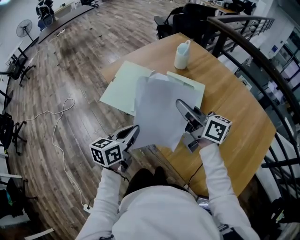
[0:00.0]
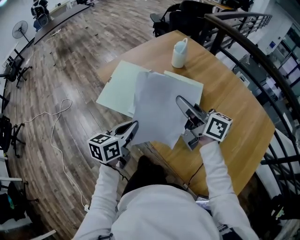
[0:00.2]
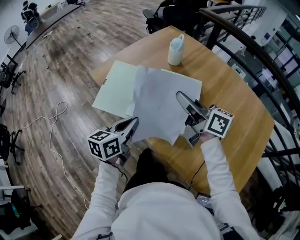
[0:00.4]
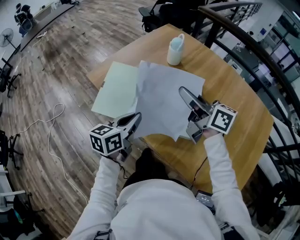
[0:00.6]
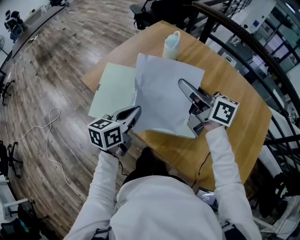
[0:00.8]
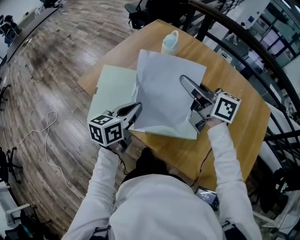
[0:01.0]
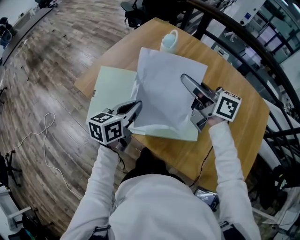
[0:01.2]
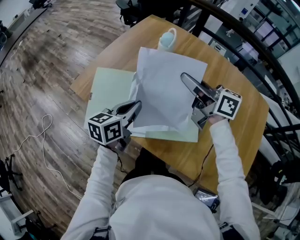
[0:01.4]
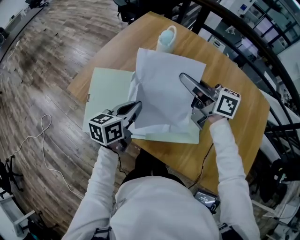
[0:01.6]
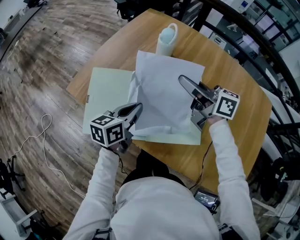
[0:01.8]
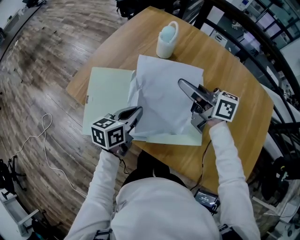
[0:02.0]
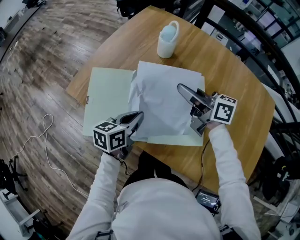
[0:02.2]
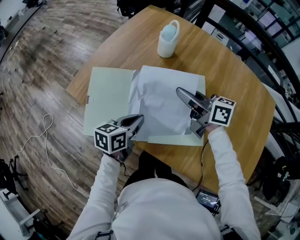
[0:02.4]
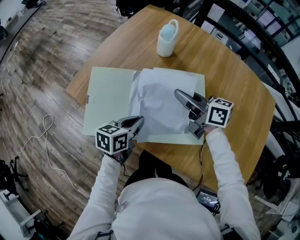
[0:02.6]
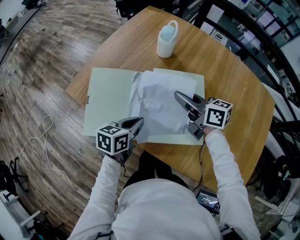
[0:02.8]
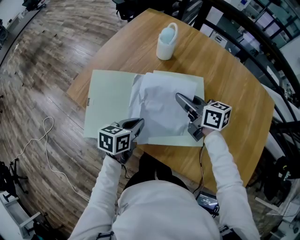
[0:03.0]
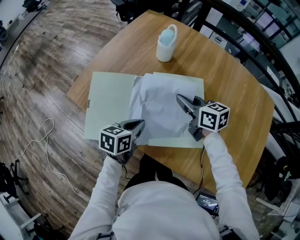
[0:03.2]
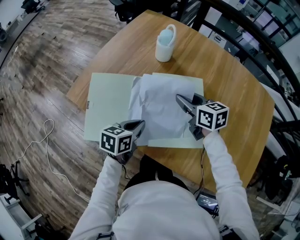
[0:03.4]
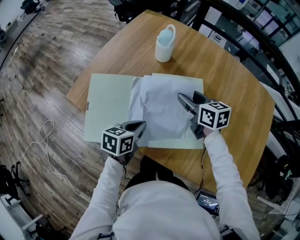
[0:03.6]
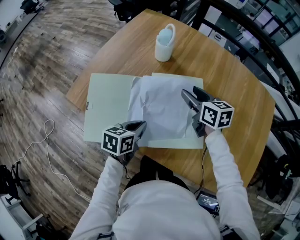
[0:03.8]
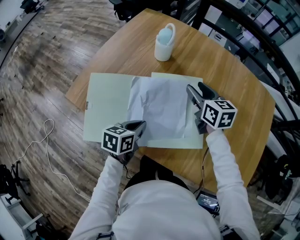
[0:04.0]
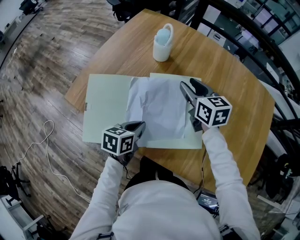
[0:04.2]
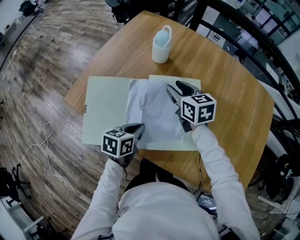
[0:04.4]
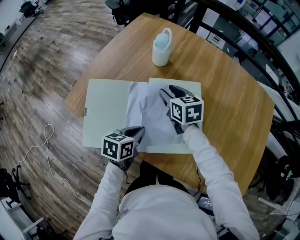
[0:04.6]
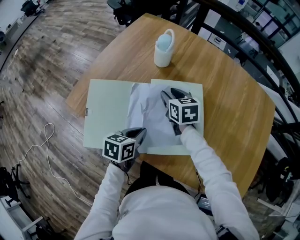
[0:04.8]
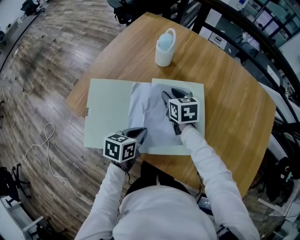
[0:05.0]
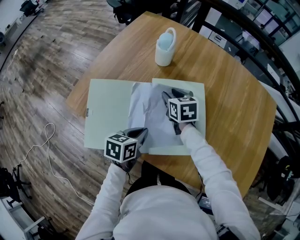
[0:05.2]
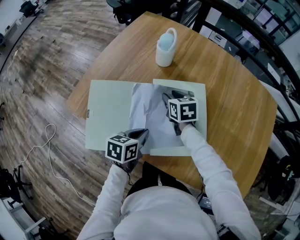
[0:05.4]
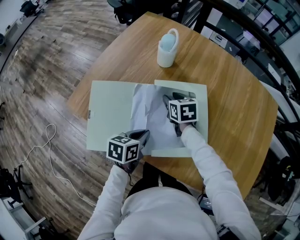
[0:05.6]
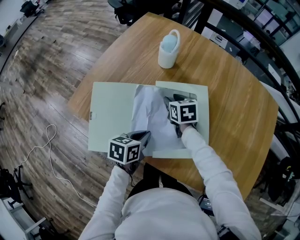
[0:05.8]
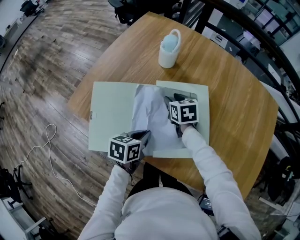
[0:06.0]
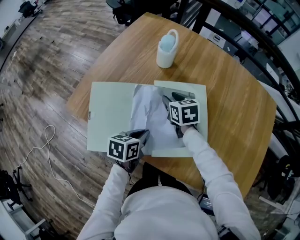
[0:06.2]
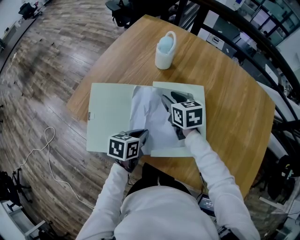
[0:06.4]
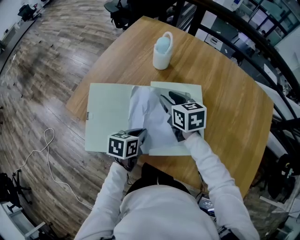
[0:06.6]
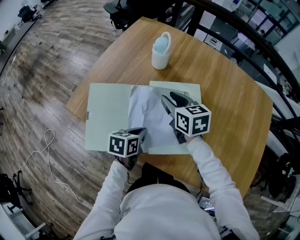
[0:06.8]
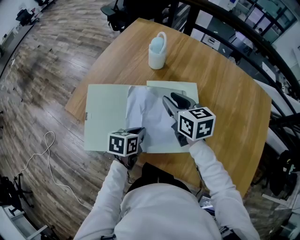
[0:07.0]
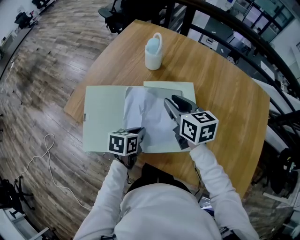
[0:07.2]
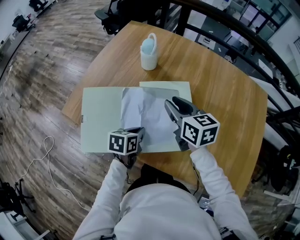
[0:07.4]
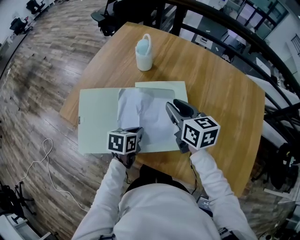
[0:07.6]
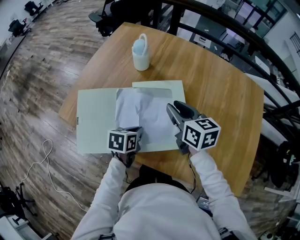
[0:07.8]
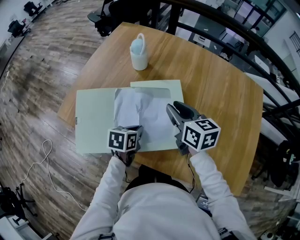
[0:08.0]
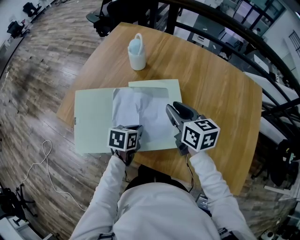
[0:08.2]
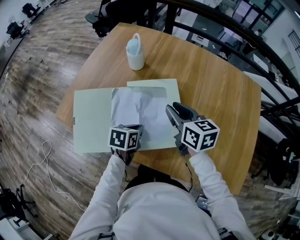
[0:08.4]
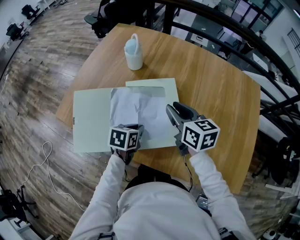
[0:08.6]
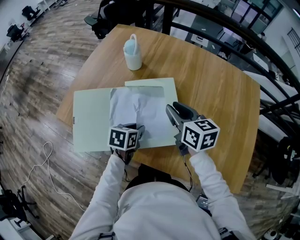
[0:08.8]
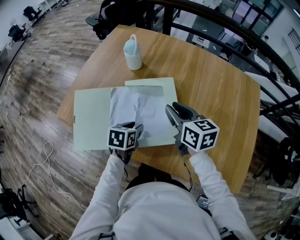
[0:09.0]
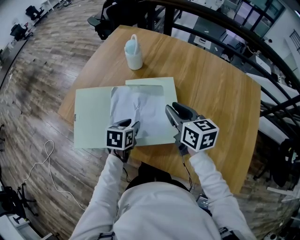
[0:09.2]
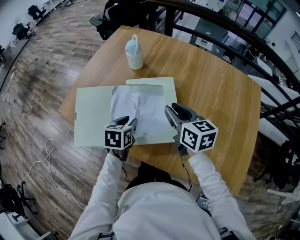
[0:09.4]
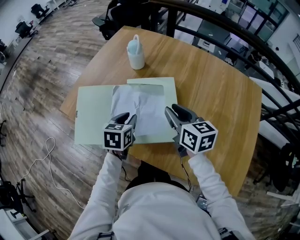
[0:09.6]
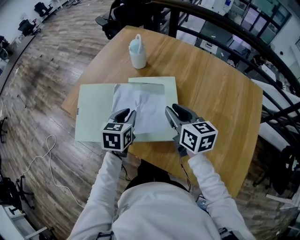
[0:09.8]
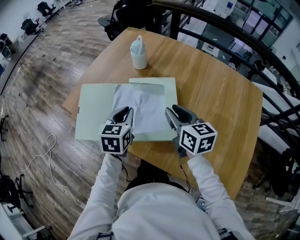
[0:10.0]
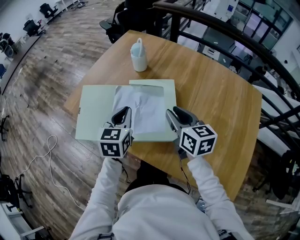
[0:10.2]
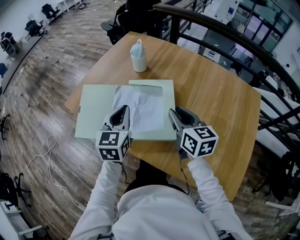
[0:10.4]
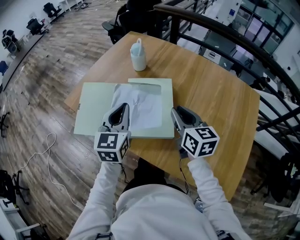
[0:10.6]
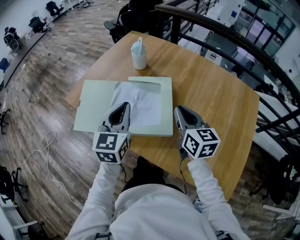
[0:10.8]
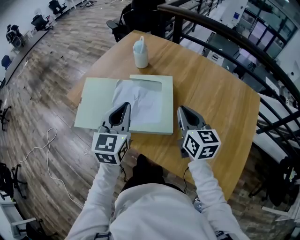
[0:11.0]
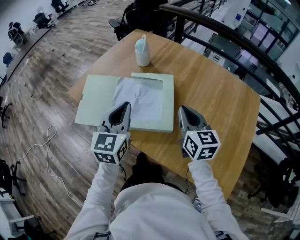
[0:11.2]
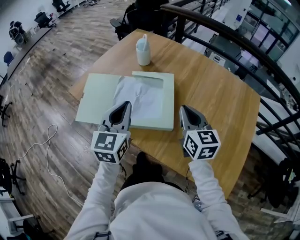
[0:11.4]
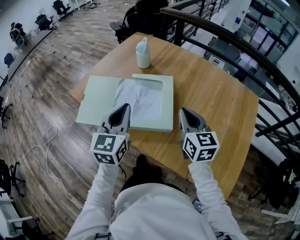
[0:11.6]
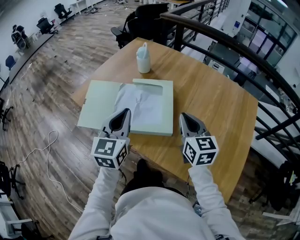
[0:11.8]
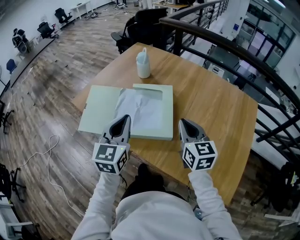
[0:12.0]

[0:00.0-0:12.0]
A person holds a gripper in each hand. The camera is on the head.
0:00.0 to 0:01.6: Both grippers travel together forward, approximately 20 cm. The left gripper rotates some 20 degrees.
0:01.6 to 0:03.0: The two grippers go about 10 cm downward.
0:03.0 to 0:04.4: The right gripper moves forward, approximately 5 cm, rotates some 30 degrees, and opens up.
0:04.4 to 0:06.0: The right gripper travels downward by some 10 cm.
0:06.0 to 0:07.6: The right gripper is displaced upward, to the right and backward by roughly 20 cm, and rotates roughly 20 degrees.
0:07.6 to 0:09.0: The left gripper opens up. The right gripper shifts roughly 5 cm to the right.
0:09.0 to 0:10.4: The right gripper is displaced backward by approximately 5 cm, while the left gripper travels upward by about 15 cm, tips its fingers upward by some 30 degrees, and closes its fingers.
0:10.4 to 0:12.0: Both grippers move backward, some 10 cm. The right gripper closes up.

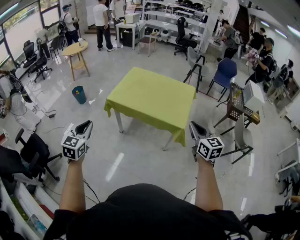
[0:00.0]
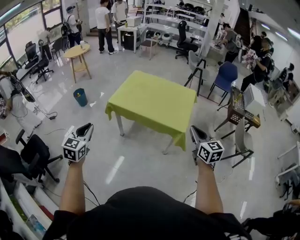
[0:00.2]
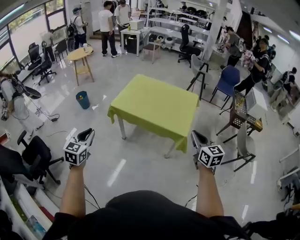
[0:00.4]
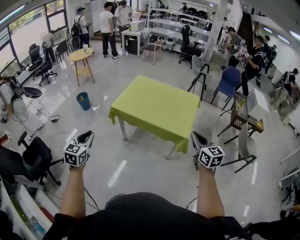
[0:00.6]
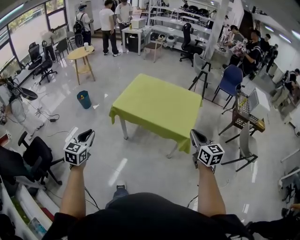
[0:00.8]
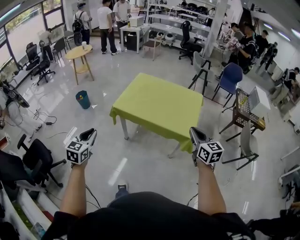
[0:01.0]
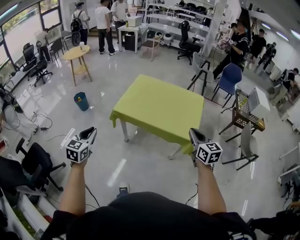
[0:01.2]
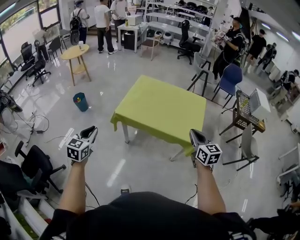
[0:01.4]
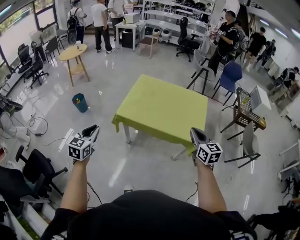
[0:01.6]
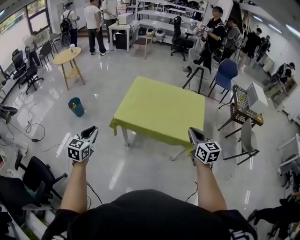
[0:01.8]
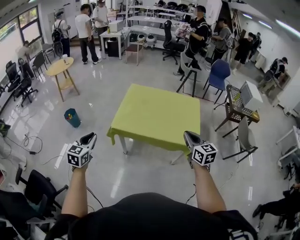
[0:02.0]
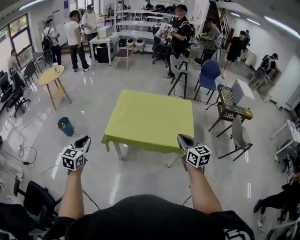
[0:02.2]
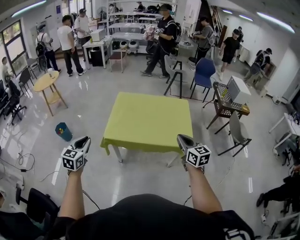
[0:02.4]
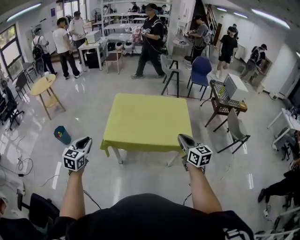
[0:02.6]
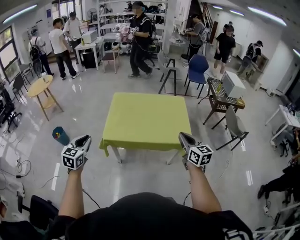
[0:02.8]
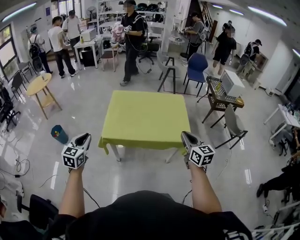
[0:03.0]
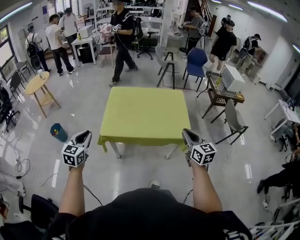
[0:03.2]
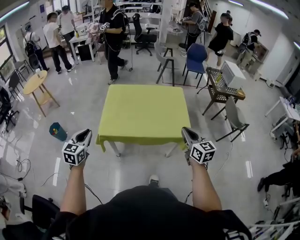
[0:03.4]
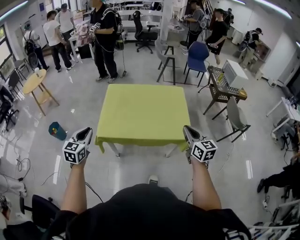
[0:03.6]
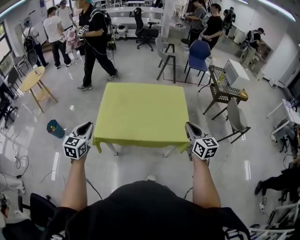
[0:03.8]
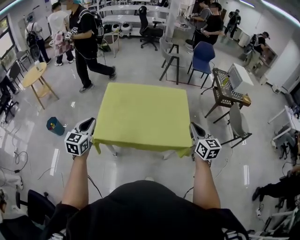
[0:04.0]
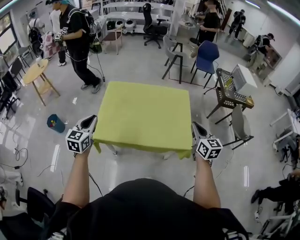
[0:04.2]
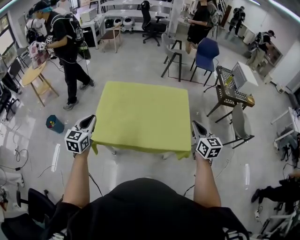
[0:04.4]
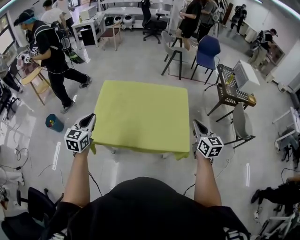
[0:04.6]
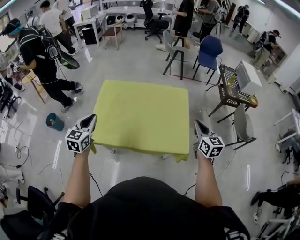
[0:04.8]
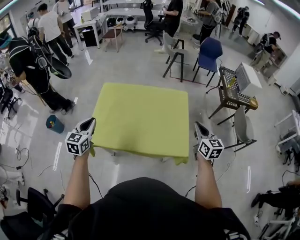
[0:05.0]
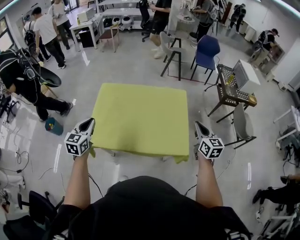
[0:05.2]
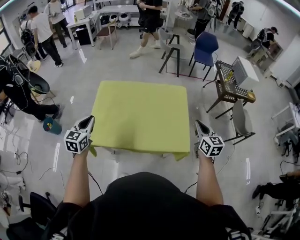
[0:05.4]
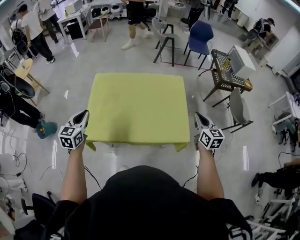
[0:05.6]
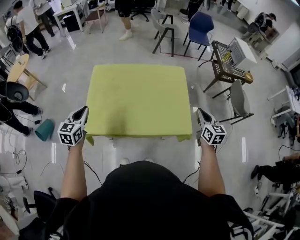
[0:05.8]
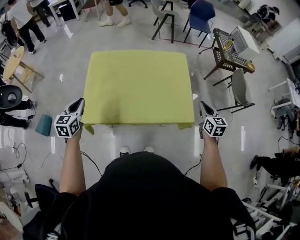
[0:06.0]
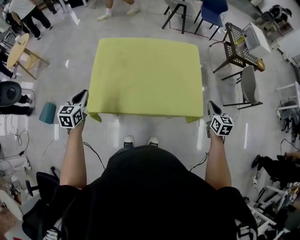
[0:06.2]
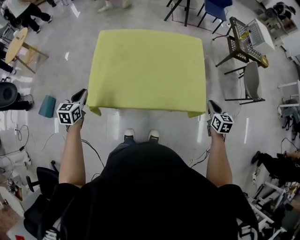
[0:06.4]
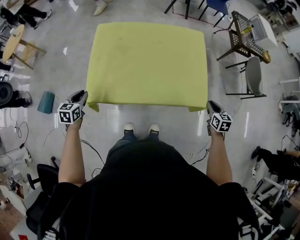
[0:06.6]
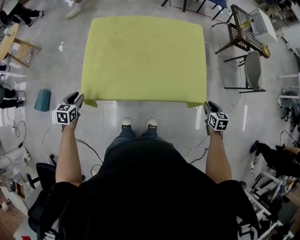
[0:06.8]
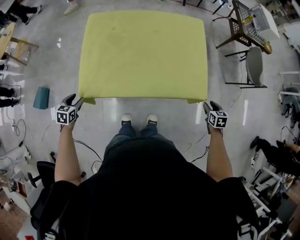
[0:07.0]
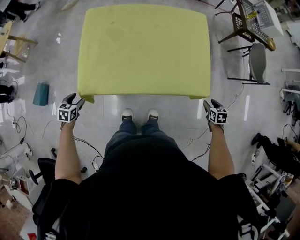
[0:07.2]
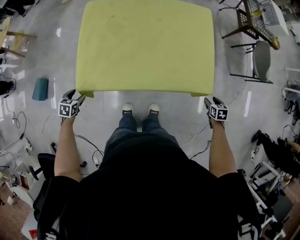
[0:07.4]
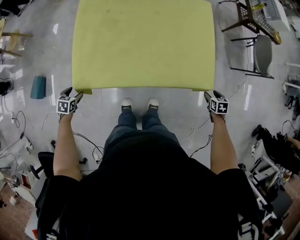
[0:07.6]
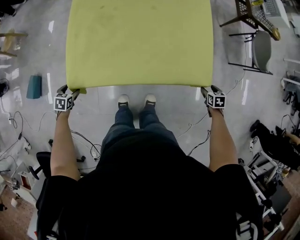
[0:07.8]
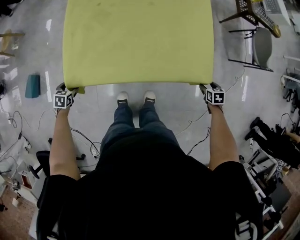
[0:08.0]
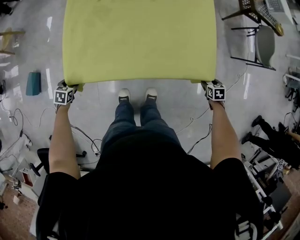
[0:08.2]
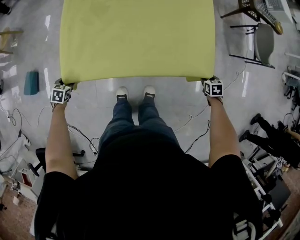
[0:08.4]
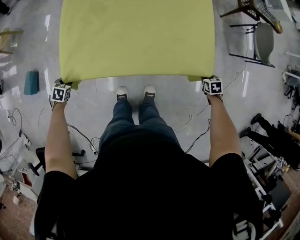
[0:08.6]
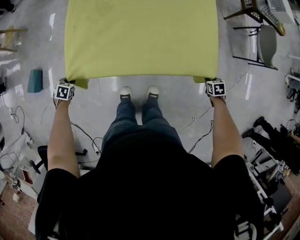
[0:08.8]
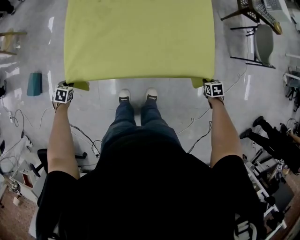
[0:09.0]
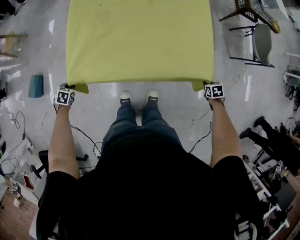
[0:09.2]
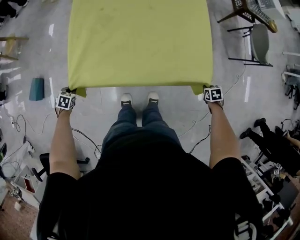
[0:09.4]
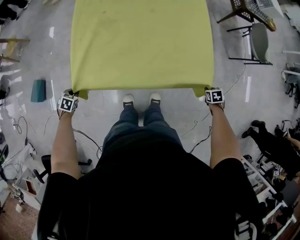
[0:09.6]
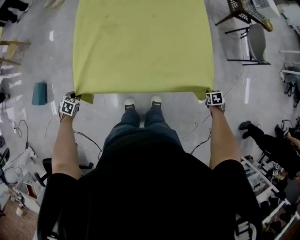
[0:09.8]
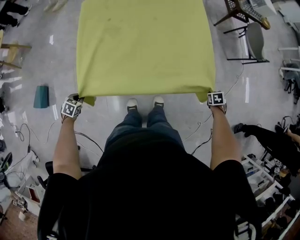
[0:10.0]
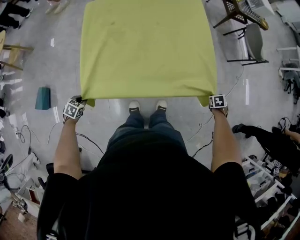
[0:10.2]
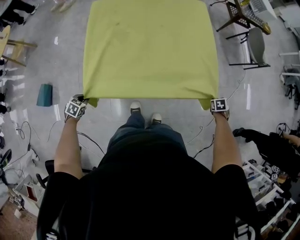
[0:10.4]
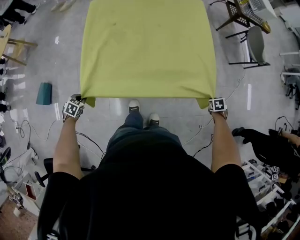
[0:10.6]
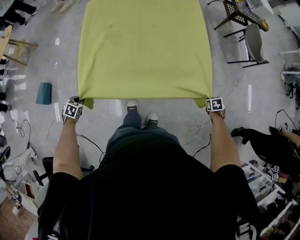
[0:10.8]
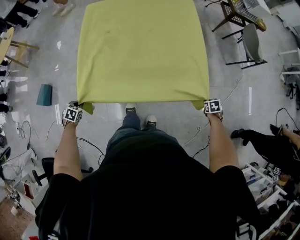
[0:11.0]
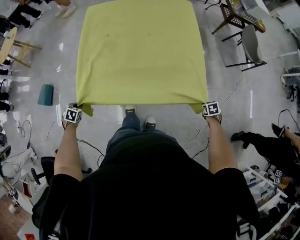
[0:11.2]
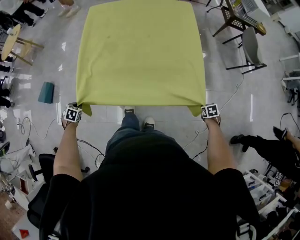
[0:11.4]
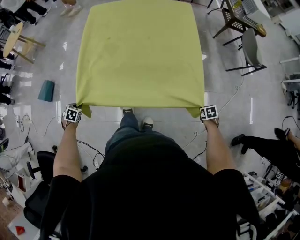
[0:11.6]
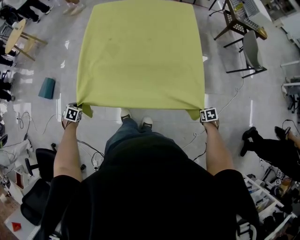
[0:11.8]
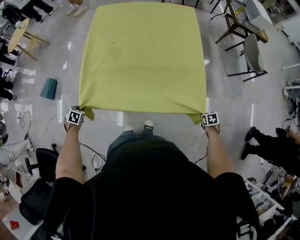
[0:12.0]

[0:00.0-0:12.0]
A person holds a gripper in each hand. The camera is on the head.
0:00.0 to 0:01.6: The two grippers go roughly 25 cm forward and to the left.
0:01.6 to 0:03.0: The left gripper moves forward, approximately 10 cm.
0:03.0 to 0:04.4: Both grippers travel together forward and to the right, roughly 30 cm.
0:04.4 to 0:06.0: The left gripper moves downward and forward, roughly 15 cm. The right gripper goes about 15 cm downward and to the right.
0:06.0 to 0:07.6: Both grippers travel together downward, some 35 cm. The right gripper tips its fingers downward by about 40 degrees, and opens its fingers. The left gripper points its fingers some 40 degrees further downward, and opens.
0:07.6 to 0:09.0: The left gripper closes up; the right gripper is displaced downward by roughly 5 cm, and closes its fingers.
0:09.0 to 0:10.4: The right gripper ends up some 20 cm from where it was. Meanwhile the left gripper shifts by approximately 15 cm.
0:10.4 to 0:12.0: The right gripper shifts by roughly 20 cm. The left gripper moves some 25 cm, and swivels some 20 degrees.
